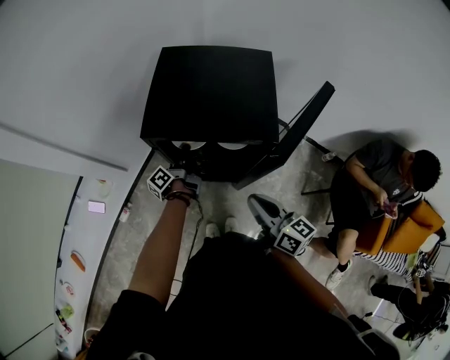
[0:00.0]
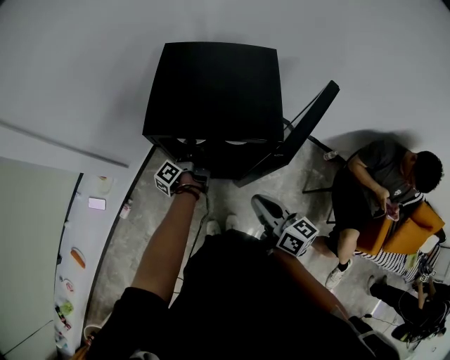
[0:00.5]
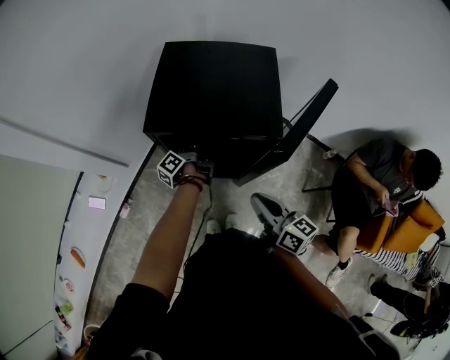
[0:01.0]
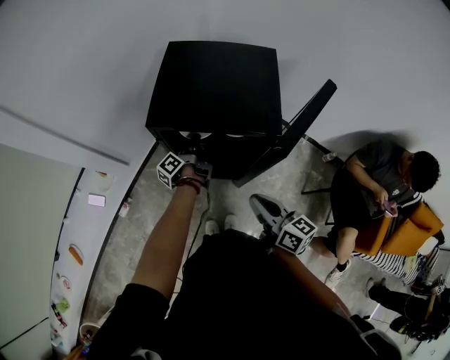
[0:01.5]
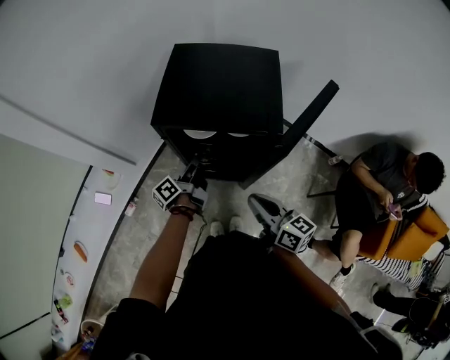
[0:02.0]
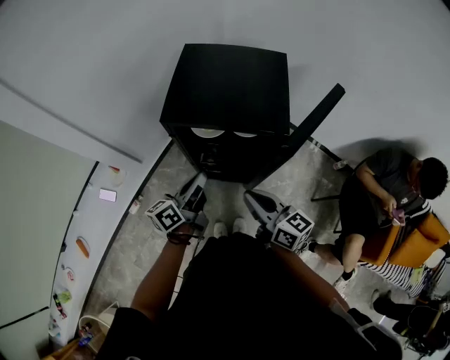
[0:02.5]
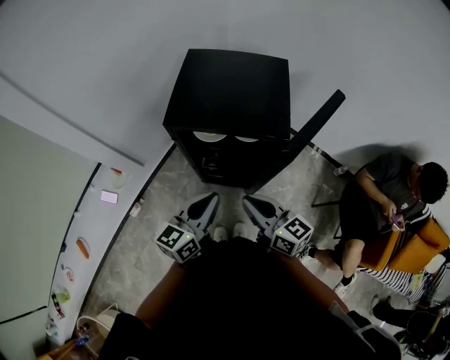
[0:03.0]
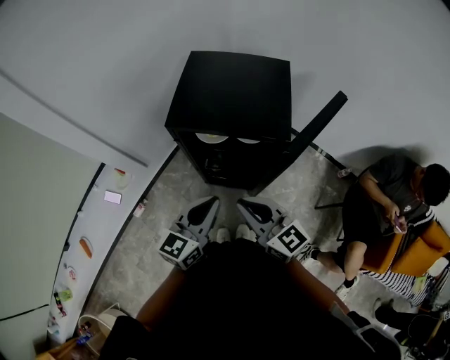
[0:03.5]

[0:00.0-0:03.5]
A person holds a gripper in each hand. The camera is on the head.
0:00.0 to 0:02.0: The left gripper moves backward, roughly 10 cm.
0:02.0 to 0:03.5: The right gripper goes roughly 10 cm upward and to the left, and turns by approximately 30 degrees. The left gripper heads upward and backward, covering about 20 cm, and rotates around the line of its fingers by approximately 70 degrees, clockwise from behind.

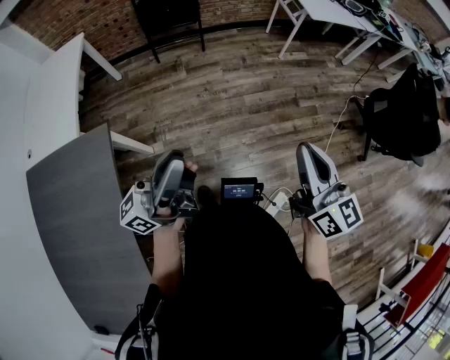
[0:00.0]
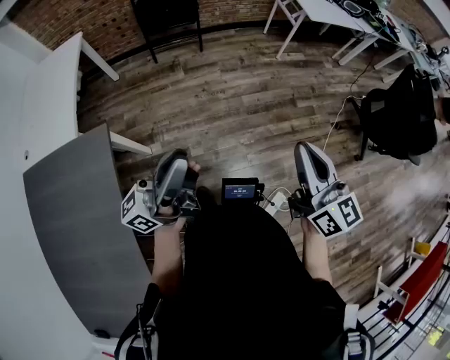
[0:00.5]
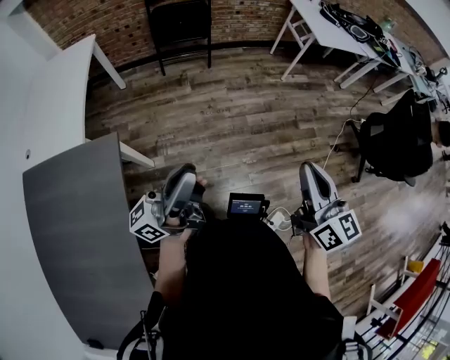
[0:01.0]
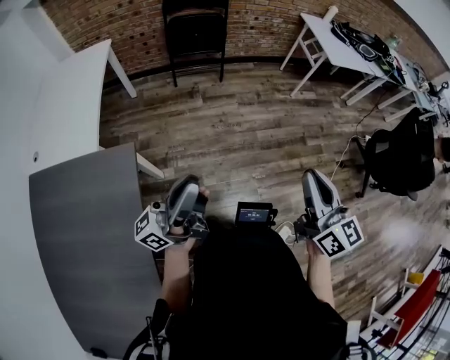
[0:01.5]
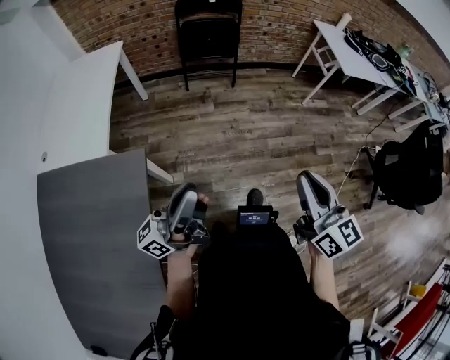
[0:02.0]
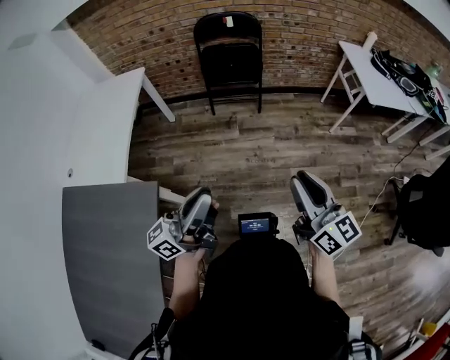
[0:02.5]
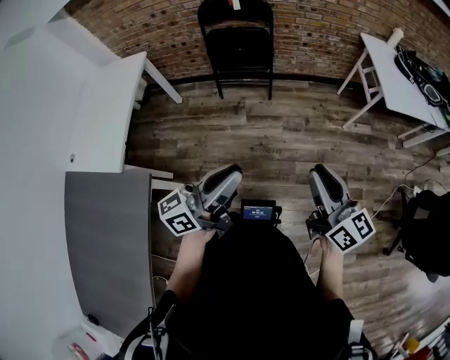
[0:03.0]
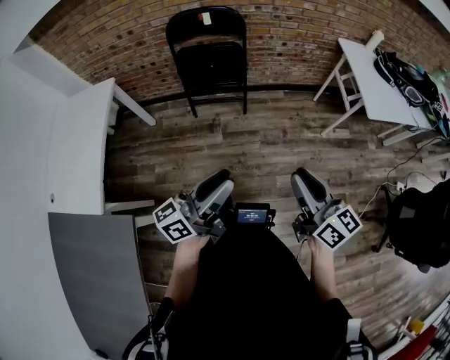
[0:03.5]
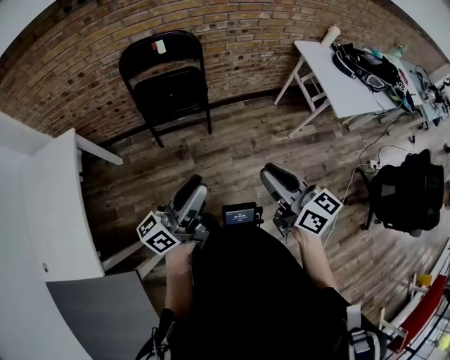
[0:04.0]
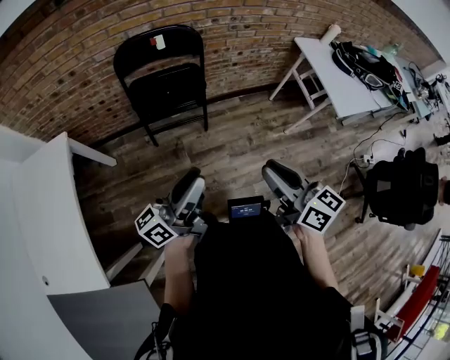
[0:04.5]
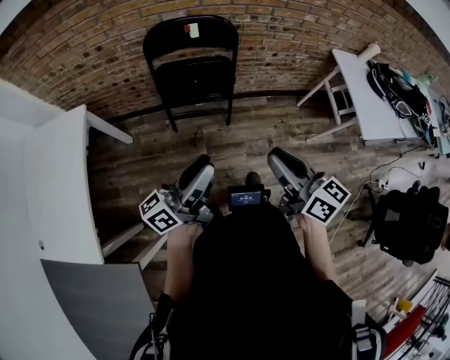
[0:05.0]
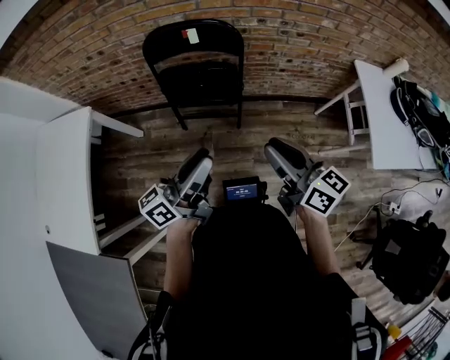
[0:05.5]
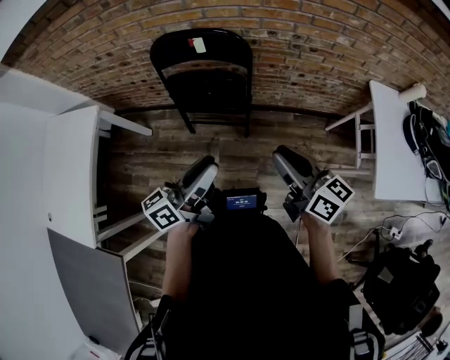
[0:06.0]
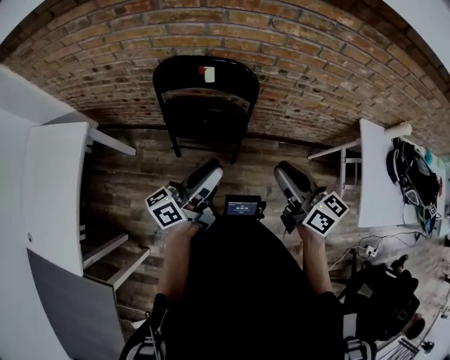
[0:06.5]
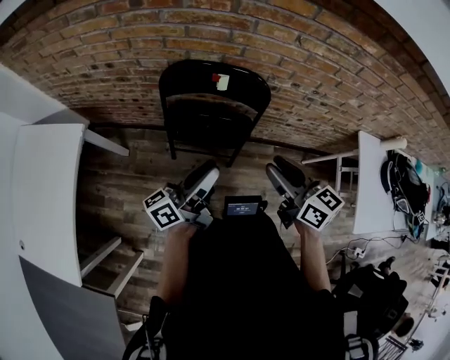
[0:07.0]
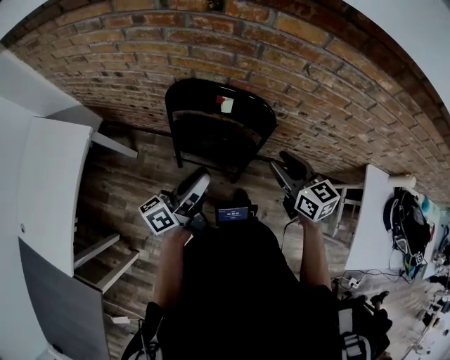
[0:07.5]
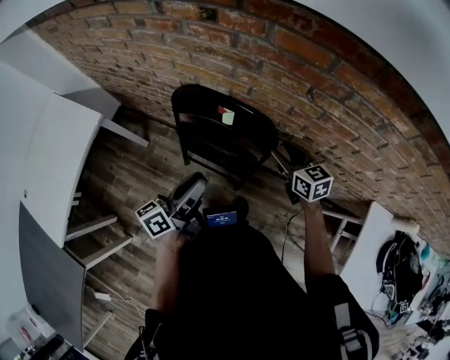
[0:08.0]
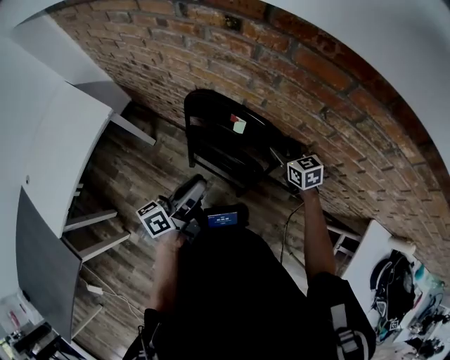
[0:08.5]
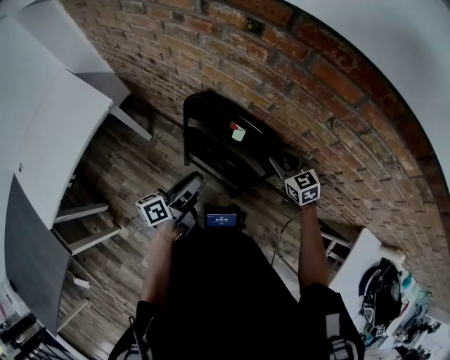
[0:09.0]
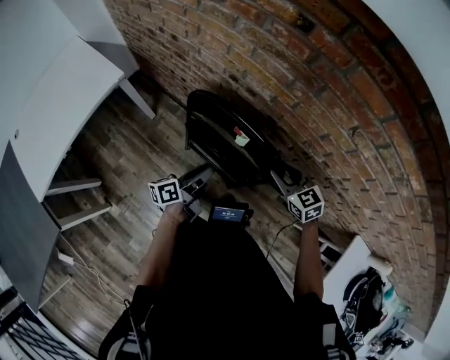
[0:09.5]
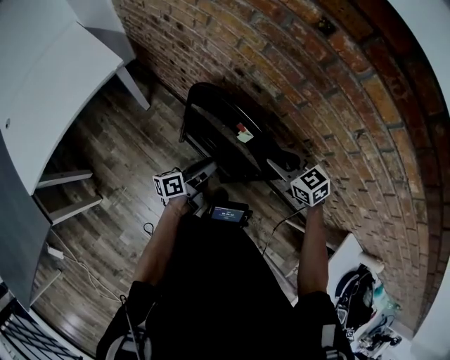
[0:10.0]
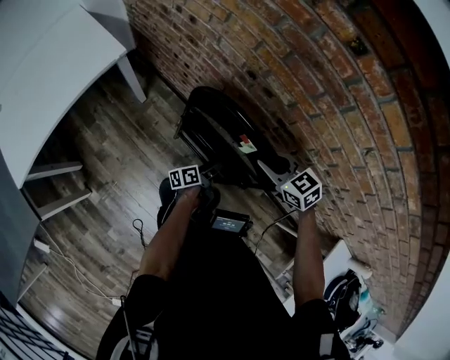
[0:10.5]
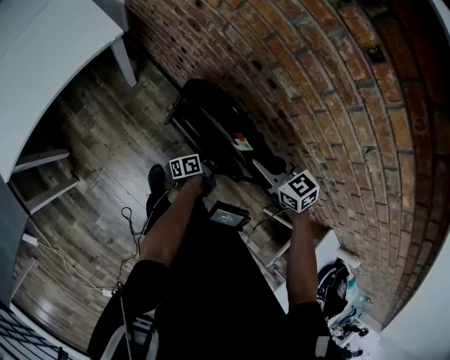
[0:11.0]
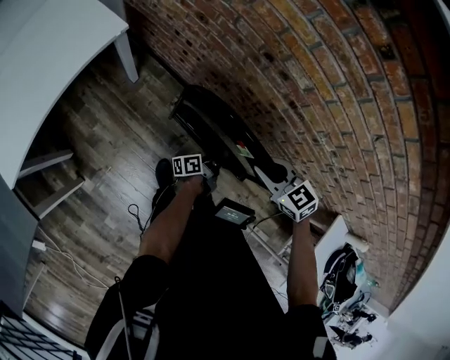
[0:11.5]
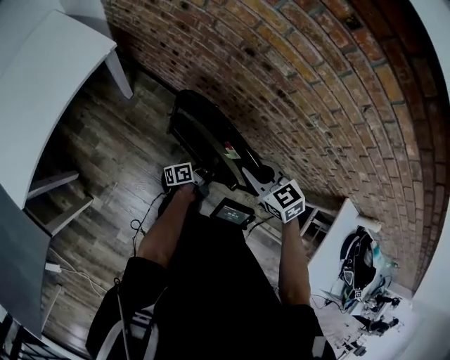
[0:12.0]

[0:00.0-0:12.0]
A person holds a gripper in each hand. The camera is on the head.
0:00.0 to 0:02.0: Both grippers travel together to the left, some 15 cm.
0:02.0 to 0:04.0: The two grippers travel together, forward, about 50 cm. The left gripper opens up.
0:04.0 to 0:06.0: The two grippers go some 30 cm forward. The right gripper turns by about 20 degrees.
0:06.0 to 0:08.0: The left gripper shifts some 25 cm forward, and swivels about 20 degrees, while the right gripper moves forward, roughly 40 cm, changes its angle by roughly 40 degrees, and opens.
0:08.0 to 0:10.0: The left gripper heads downward, covering roughly 15 cm. Meanwhile the right gripper shifts some 10 cm to the left, and turns by some 40 degrees.
0:10.0 to 0:12.0: The right gripper travels to the left and backward by some 20 cm, and closes; the left gripper moves downward and backward, about 15 cm, and closes.

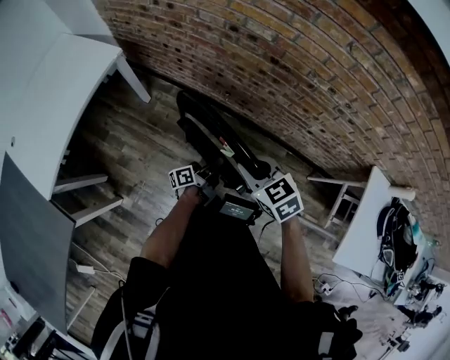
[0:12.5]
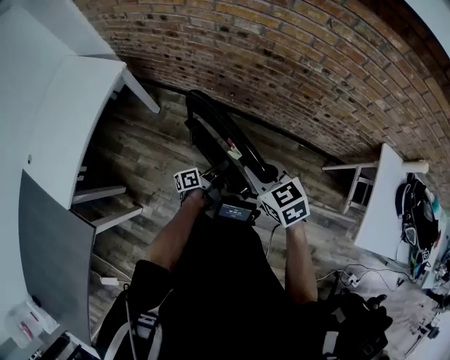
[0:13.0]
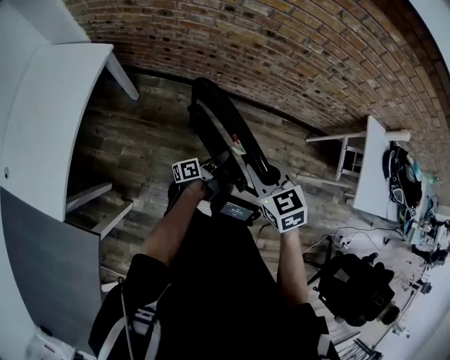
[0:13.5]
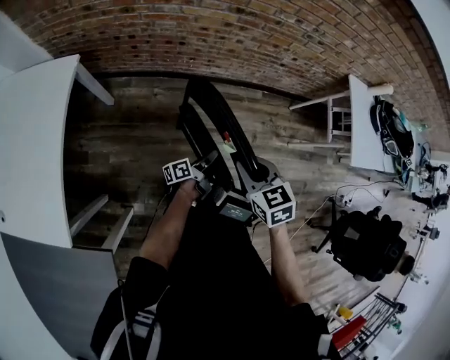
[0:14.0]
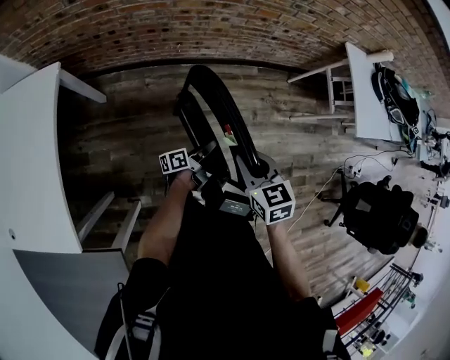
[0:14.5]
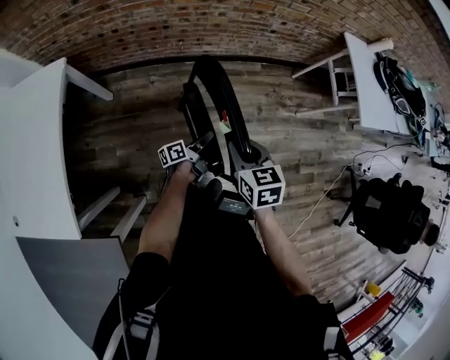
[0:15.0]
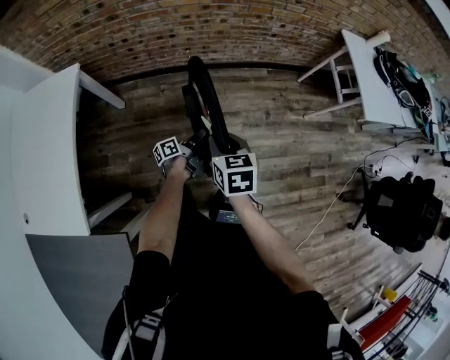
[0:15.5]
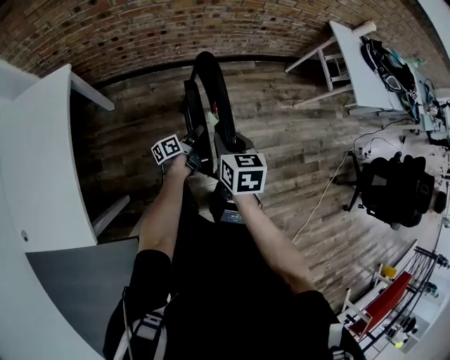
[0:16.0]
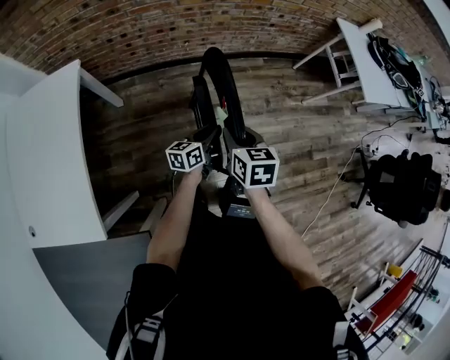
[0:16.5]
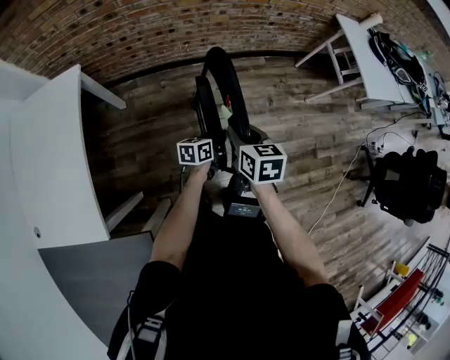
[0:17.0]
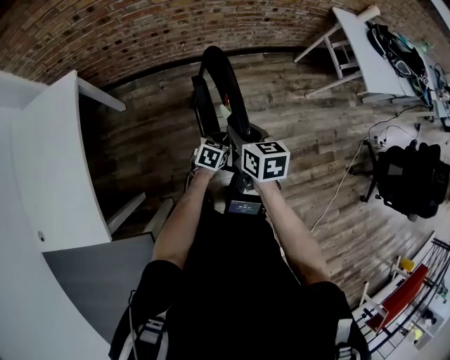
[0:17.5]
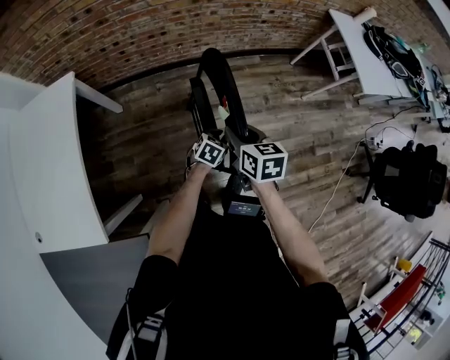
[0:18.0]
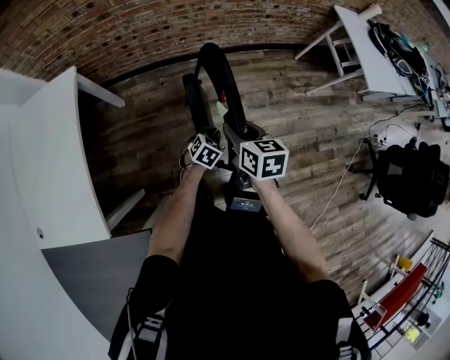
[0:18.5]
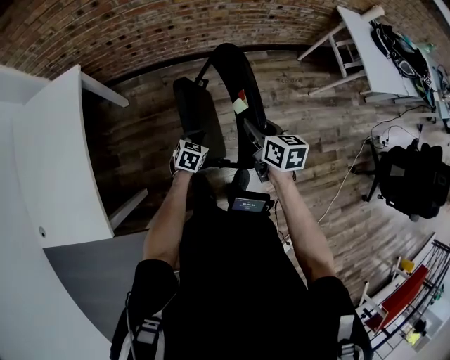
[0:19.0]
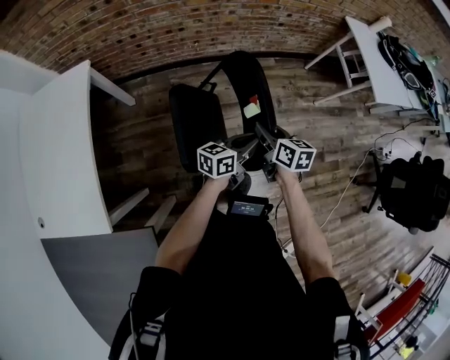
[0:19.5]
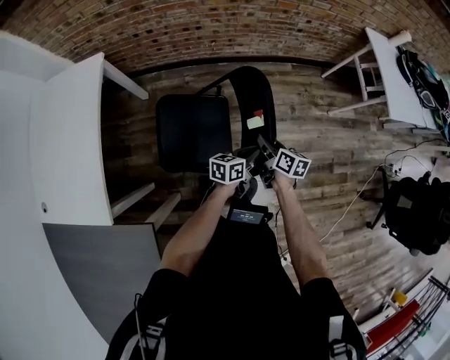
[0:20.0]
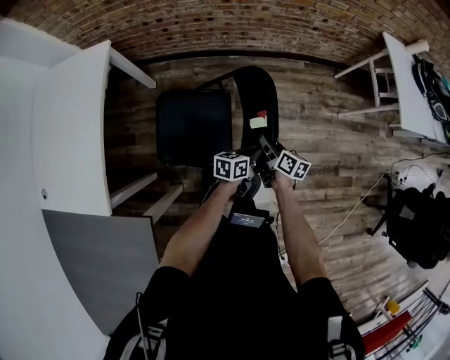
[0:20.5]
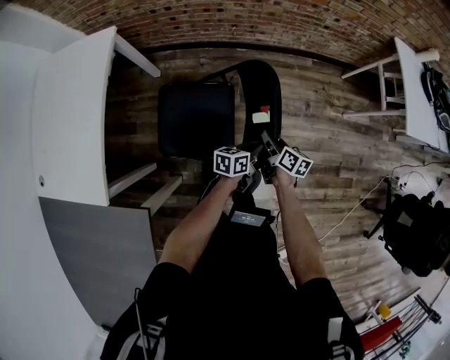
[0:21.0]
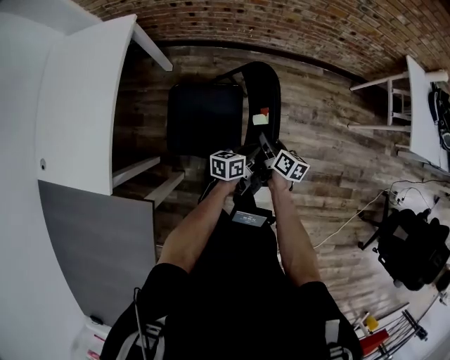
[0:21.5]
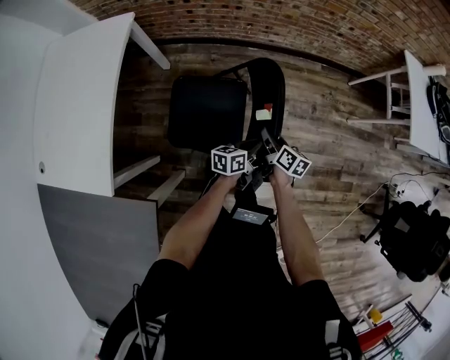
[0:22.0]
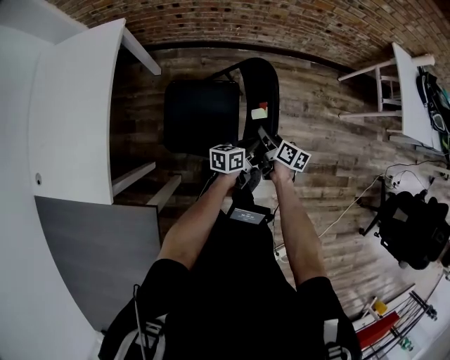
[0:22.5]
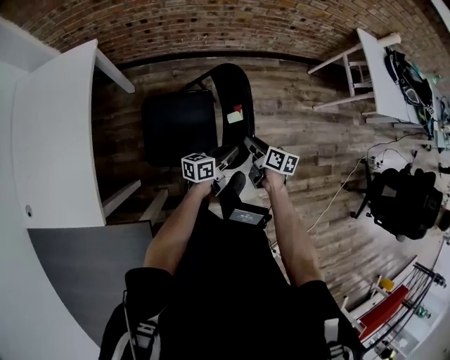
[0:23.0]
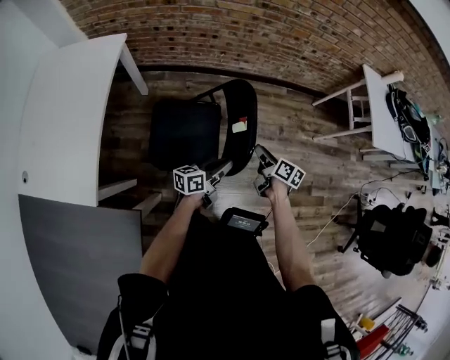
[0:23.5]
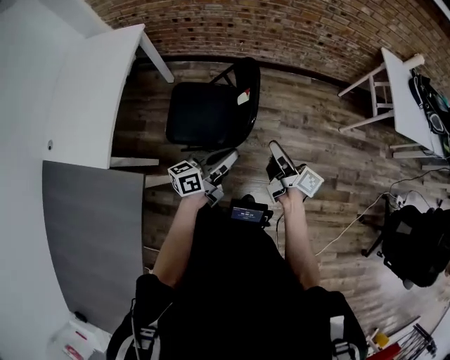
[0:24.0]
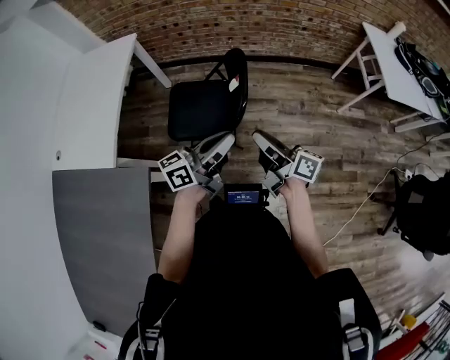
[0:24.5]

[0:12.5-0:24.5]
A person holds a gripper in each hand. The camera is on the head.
0:12.5 to 0:14.5: The left gripper shifts by roughly 20 cm, and swivels approximately 40 degrees. Meanwhile the right gripper shifts by roughly 20 cm, and turns by roughly 50 degrees.
0:14.5 to 0:16.5: The left gripper travels backward, upward and to the left by some 10 cm, and changes its angle by some 40 degrees. The right gripper goes roughly 10 cm backward and to the left, and swivels approximately 20 degrees.
0:16.5 to 0:18.5: The left gripper heads downward, covering some 10 cm, and tilts its fingers approximately 40 degrees downward.
0:18.5 to 0:20.5: The right gripper heads downward, covering roughly 20 cm, and swivels about 30 degrees. The left gripper shifts some 10 cm to the right, goes upward and returns, about 15 cm each way, and rolls counterclockwise, seen from behind, by some 50 degrees.
0:20.5 to 0:22.5: Both grippers move to the left, roughly 5 cm.
0:22.5 to 0:24.5: The grippers both shift upward and backward by some 35 cm. The right gripper tips its fingers upward by roughly 40 degrees; the left gripper changes its angle by some 30 degrees.
